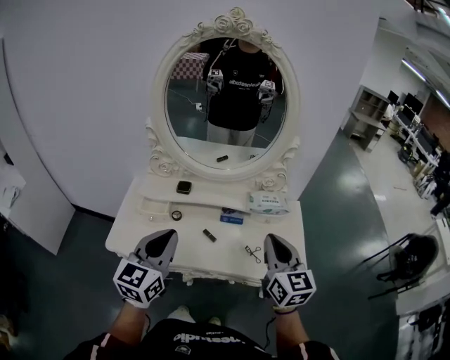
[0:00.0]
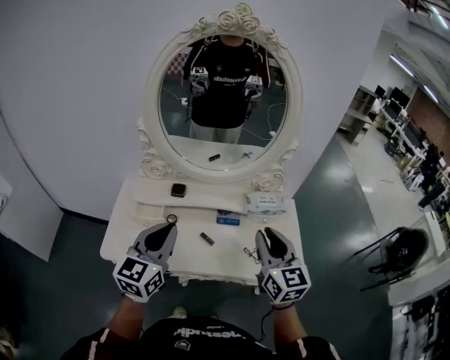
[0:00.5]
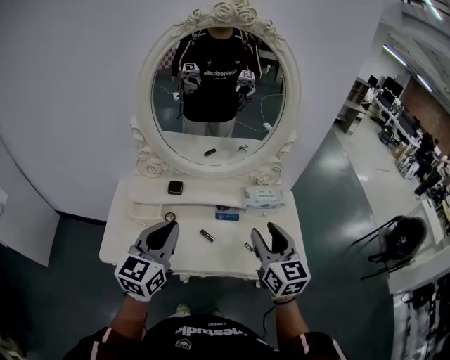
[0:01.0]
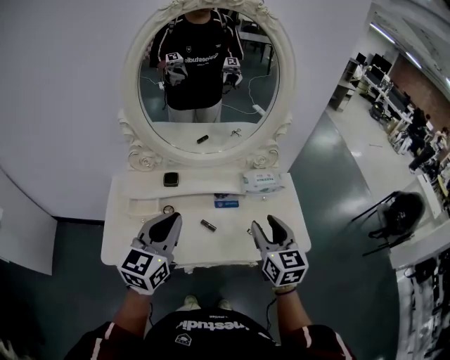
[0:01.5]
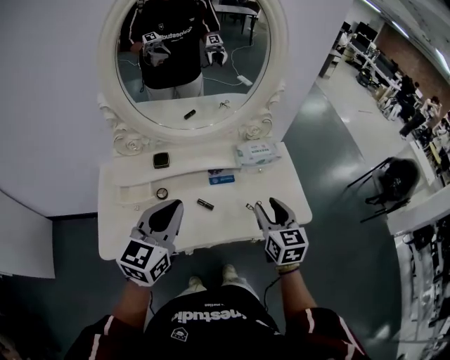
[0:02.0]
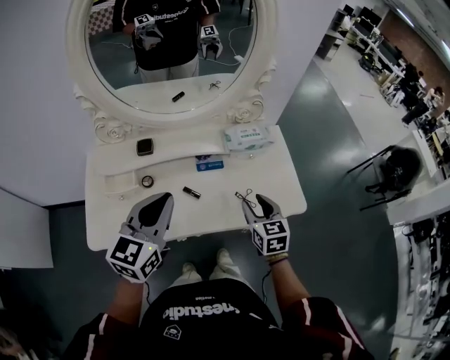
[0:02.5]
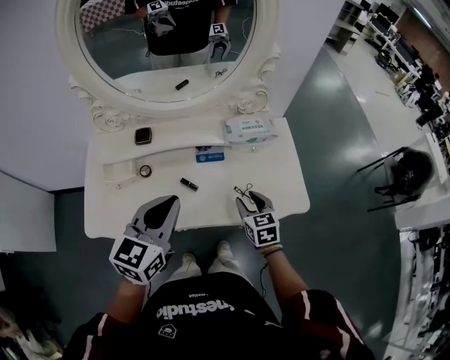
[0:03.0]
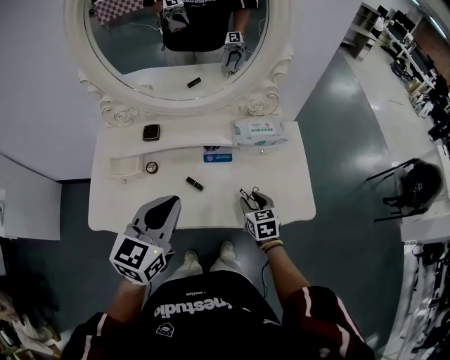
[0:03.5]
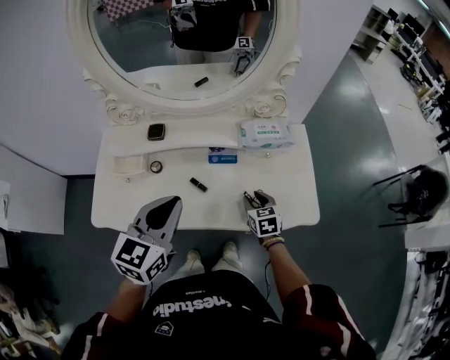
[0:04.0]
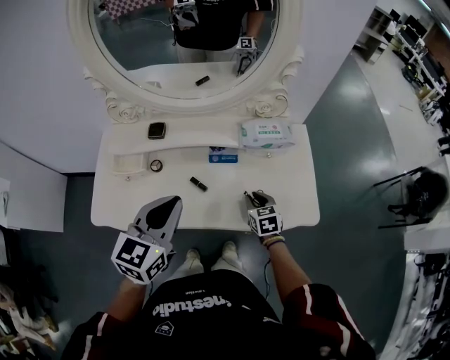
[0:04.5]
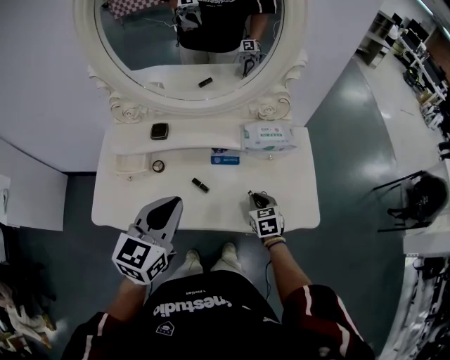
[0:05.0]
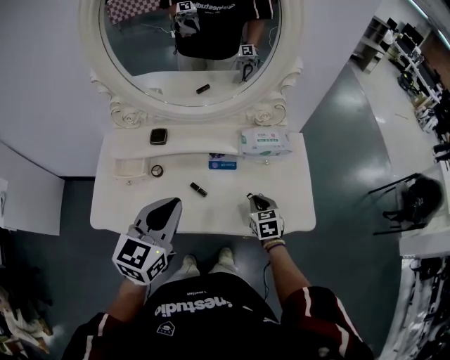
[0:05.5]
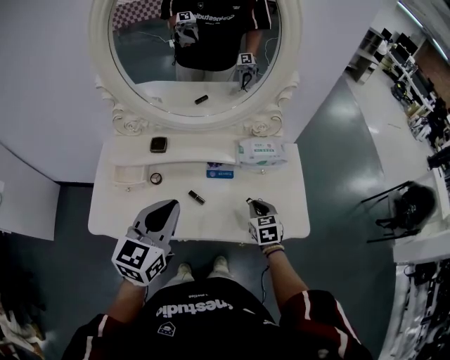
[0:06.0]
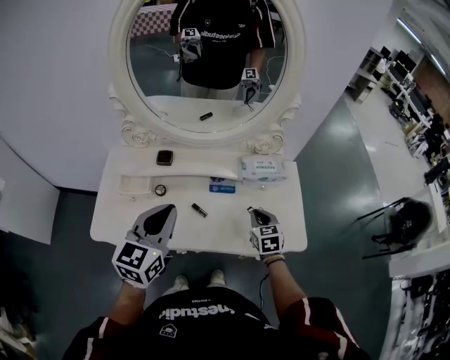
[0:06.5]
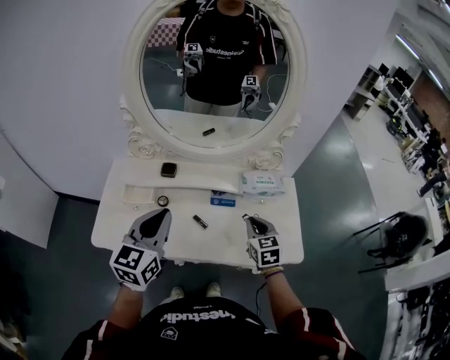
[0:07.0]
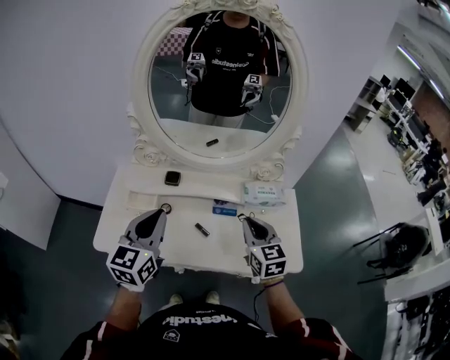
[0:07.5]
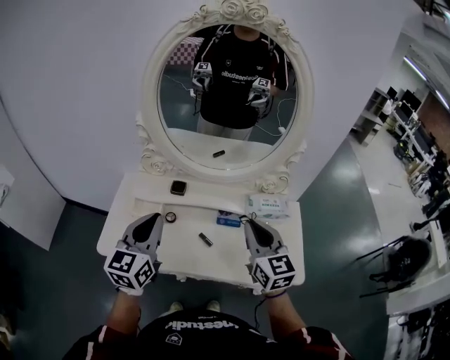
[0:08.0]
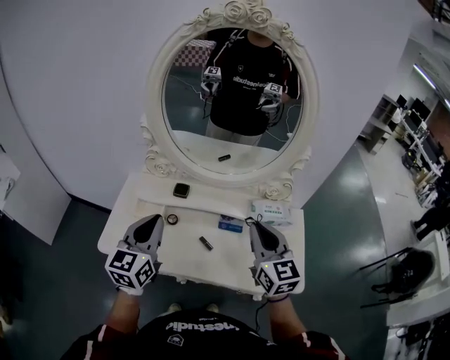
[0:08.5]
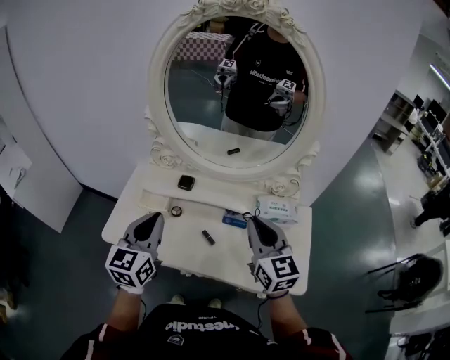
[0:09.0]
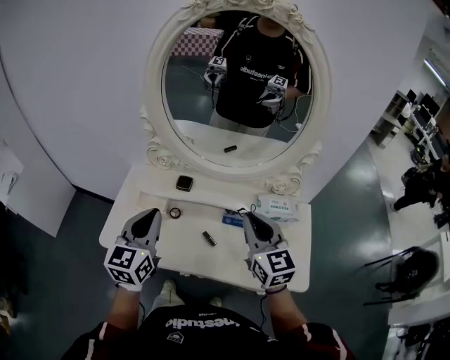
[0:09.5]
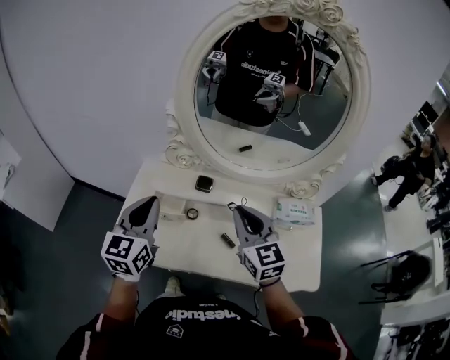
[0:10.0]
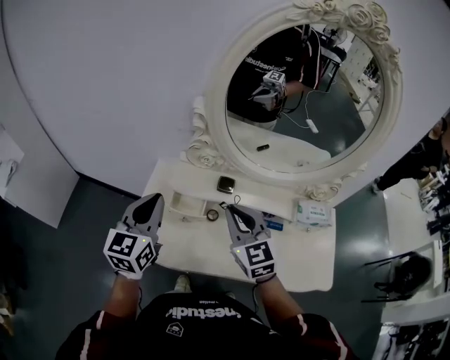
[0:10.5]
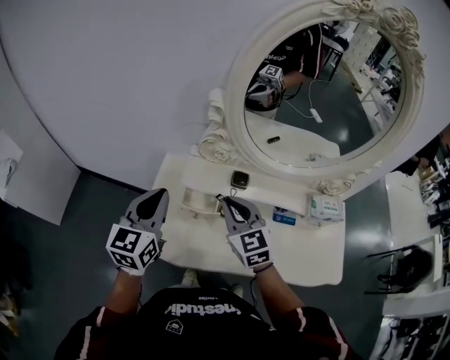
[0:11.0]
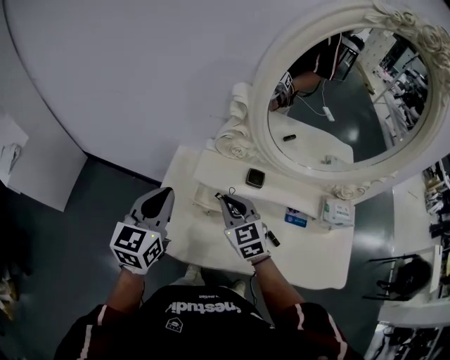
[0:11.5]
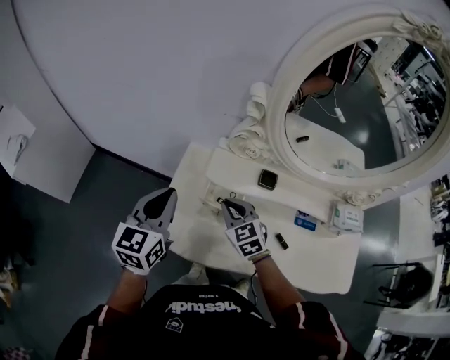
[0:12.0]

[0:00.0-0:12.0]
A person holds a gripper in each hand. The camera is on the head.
0:00.0 to 0:02.0: The right gripper is displaced downward by roughly 10 cm, changes its angle by approximately 20 degrees, and opens its fingers; the left gripper travels forward by some 5 cm.
0:02.0 to 0:04.0: The left gripper heads to the right and downward, covering approximately 10 cm, while the right gripper travels downward by roughly 25 cm, and turns by some 30 degrees.
0:04.0 to 0:06.0: The right gripper changes place by about 5 cm, and closes.
0:06.0 to 0:08.0: The left gripper moves to the left and upward, approximately 10 cm. The right gripper is displaced upward by about 30 cm, and tilts its fingers approximately 30 degrees upward.
0:08.0 to 0:10.0: Both grippers travel together to the left and forward, approximately 15 cm.
0:10.0 to 0:12.0: The left gripper is displaced to the left and downward by some 15 cm. The right gripper moves to the left, downward and forward, approximately 30 cm, and rotates some 30 degrees.

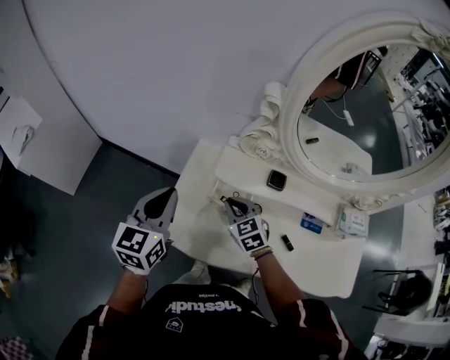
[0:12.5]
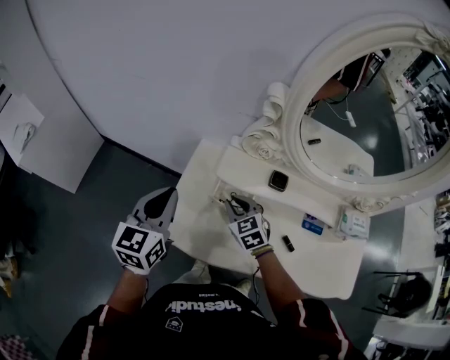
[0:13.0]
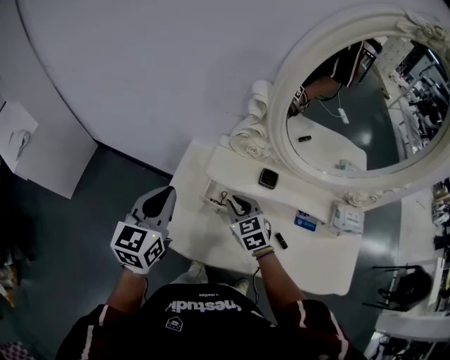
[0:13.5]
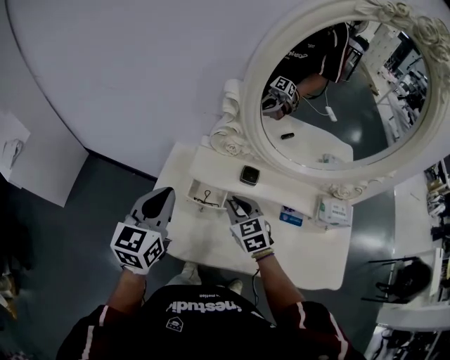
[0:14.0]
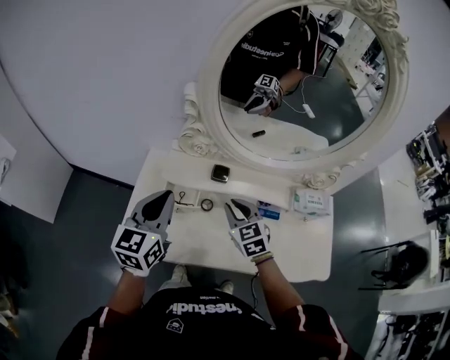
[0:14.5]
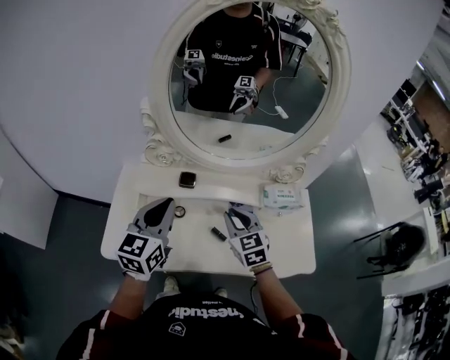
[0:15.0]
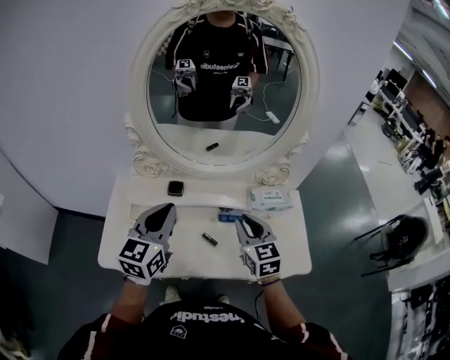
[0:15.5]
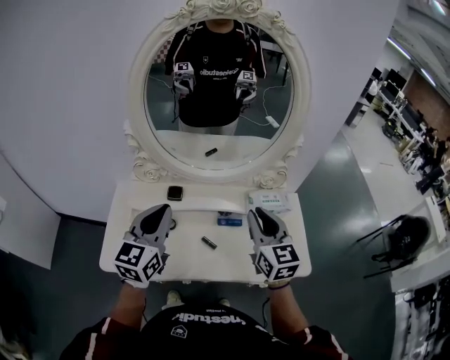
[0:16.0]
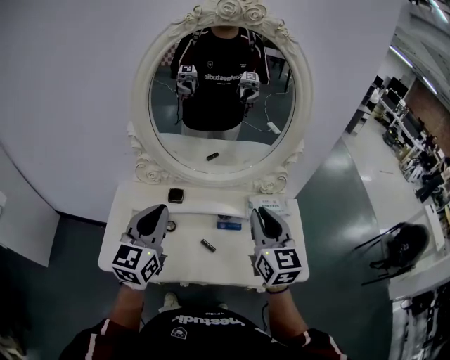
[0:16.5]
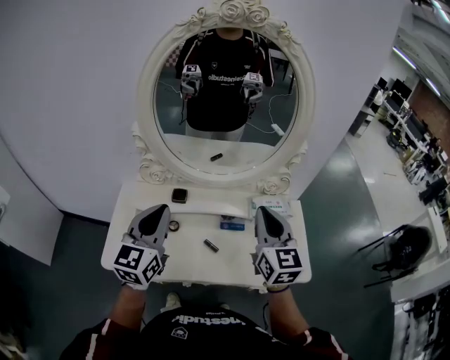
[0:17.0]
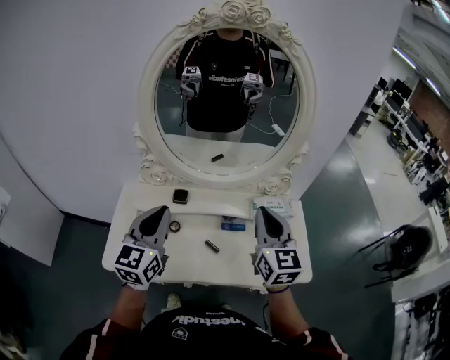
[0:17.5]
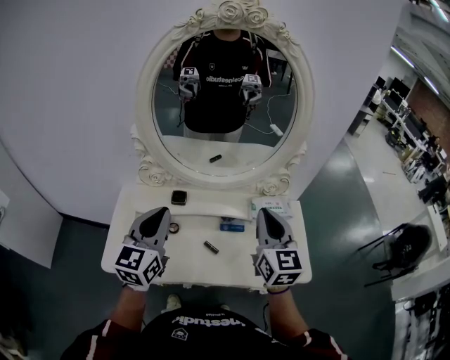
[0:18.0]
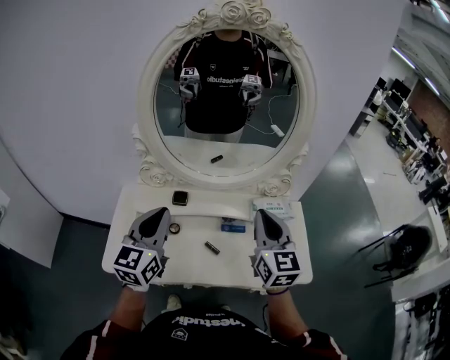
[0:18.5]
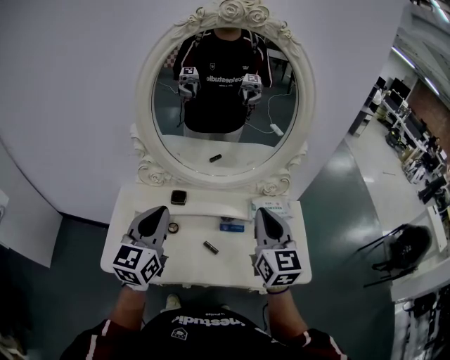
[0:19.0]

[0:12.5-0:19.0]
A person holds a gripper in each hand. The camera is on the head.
0:12.5 to 0:14.5: The right gripper is displaced to the right and upward by about 20 cm; the left gripper shifts some 15 cm to the right.
0:14.5 to 0:17.0: The left gripper shifts roughly 15 cm to the right and upward; the right gripper is displaced to the right and upward by roughly 30 cm, and rotates some 40 degrees.
0:17.0 to 0:19.0: The two grippers keep their place.

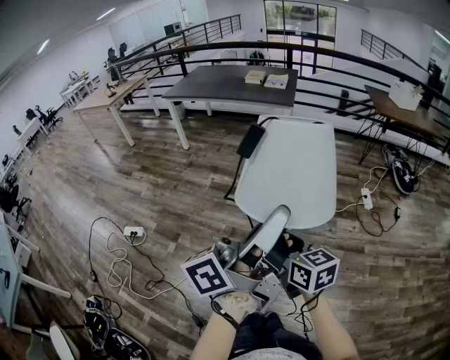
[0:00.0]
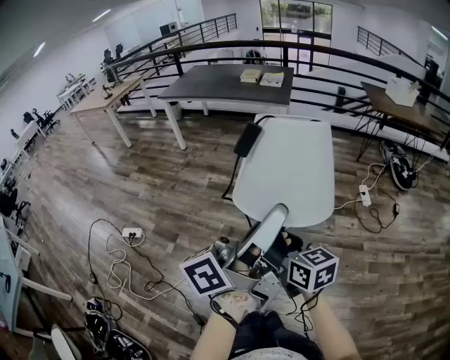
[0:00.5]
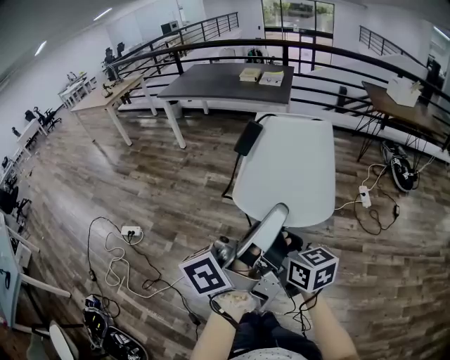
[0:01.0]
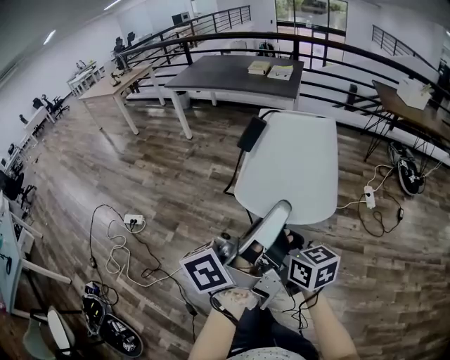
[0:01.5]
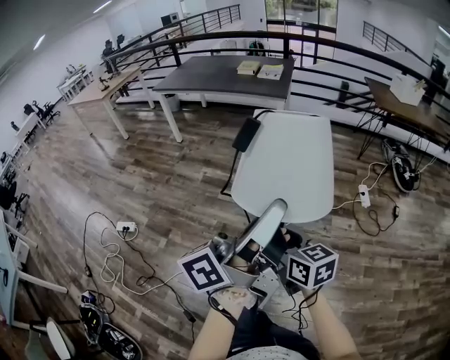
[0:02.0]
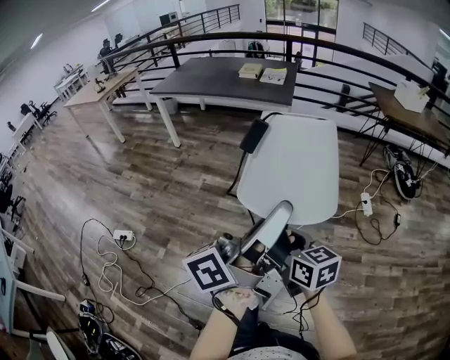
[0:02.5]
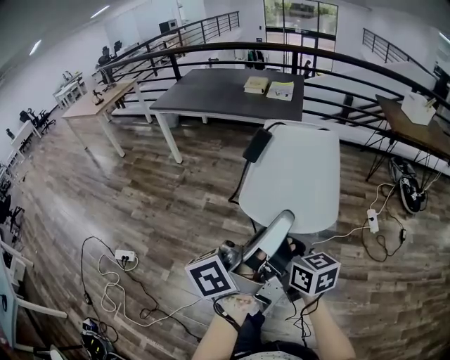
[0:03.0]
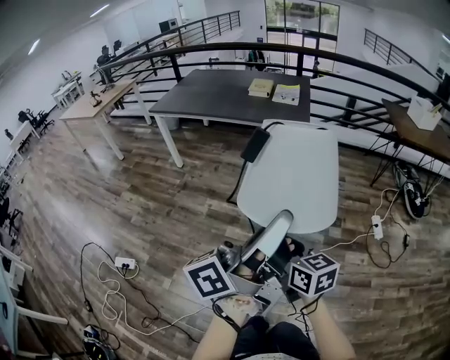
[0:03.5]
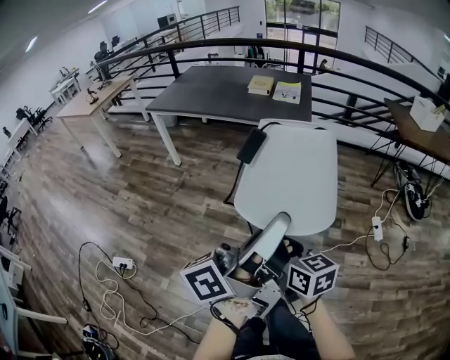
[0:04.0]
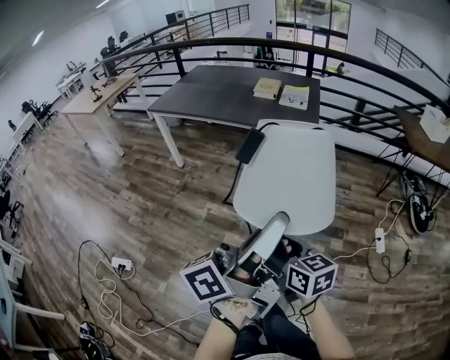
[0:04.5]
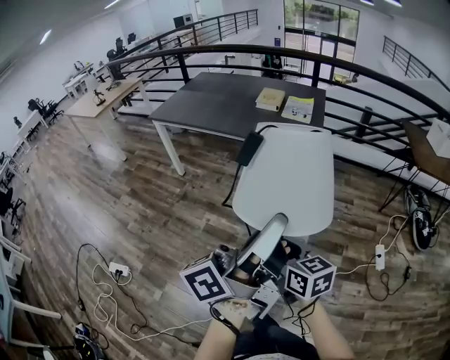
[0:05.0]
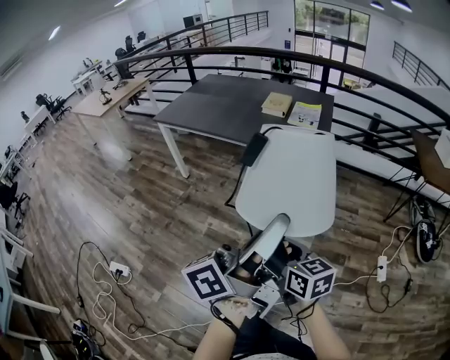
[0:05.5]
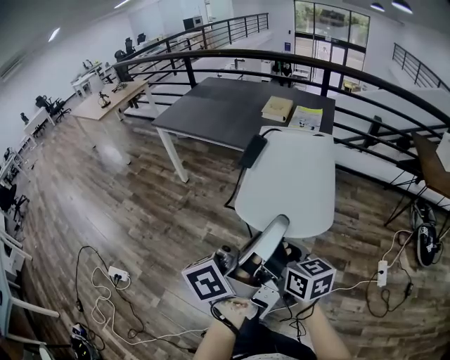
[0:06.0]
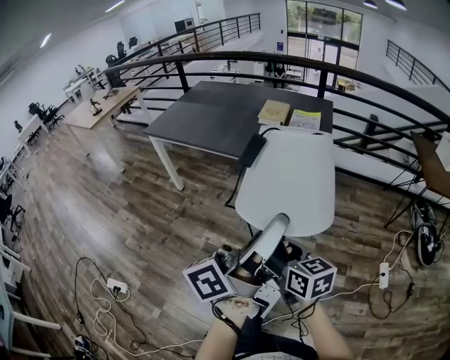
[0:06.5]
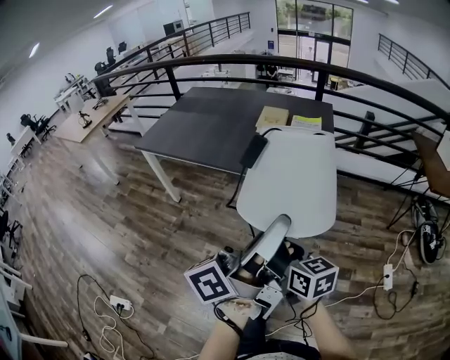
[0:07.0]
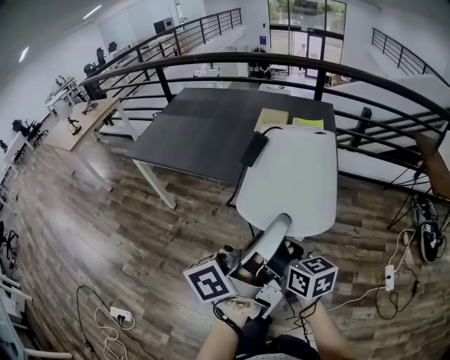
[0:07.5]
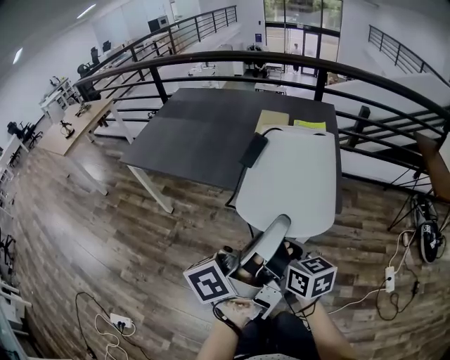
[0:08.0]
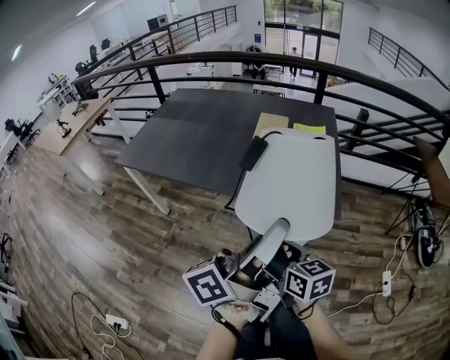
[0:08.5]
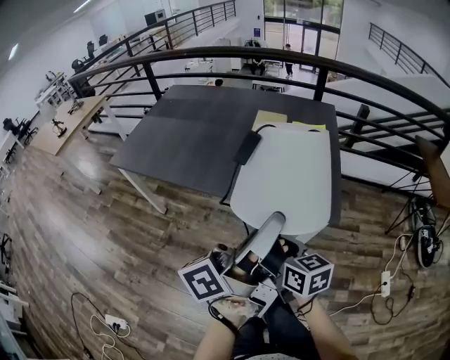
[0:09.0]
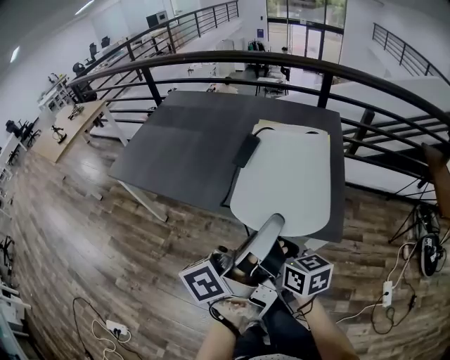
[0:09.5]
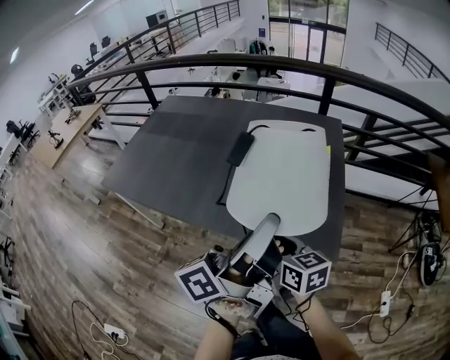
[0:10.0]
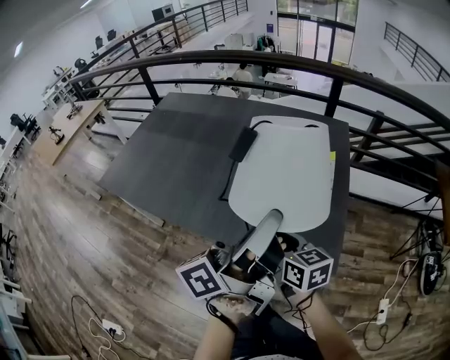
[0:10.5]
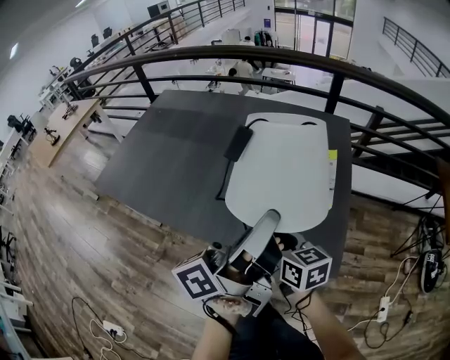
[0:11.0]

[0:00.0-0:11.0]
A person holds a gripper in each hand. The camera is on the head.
0:00.0 to 0:02.0: Both grippers travel together forward and to the right, roughly 10 cm.
0:02.0 to 0:03.5: The grippers both shift forward and to the left by some 30 cm.
0:03.5 to 0:05.5: The two grippers go approximately 25 cm forward.
0:05.5 to 0:07.5: Both grippers move forward, some 25 cm.
0:07.5 to 0:09.0: Both grippers travel together forward, some 10 cm.
0:09.0 to 0:11.0: The two grippers go about 25 cm forward.
